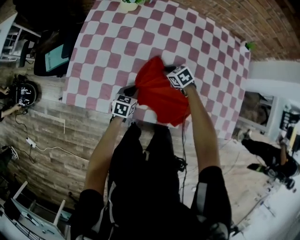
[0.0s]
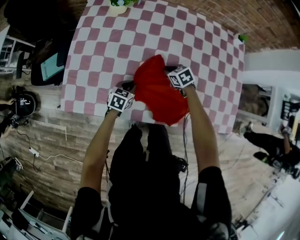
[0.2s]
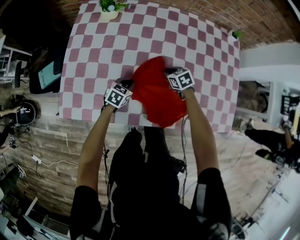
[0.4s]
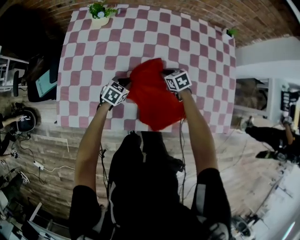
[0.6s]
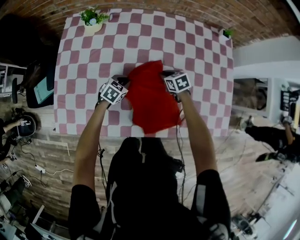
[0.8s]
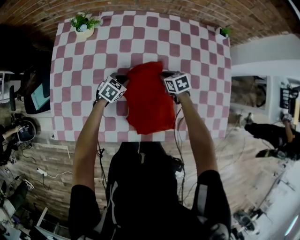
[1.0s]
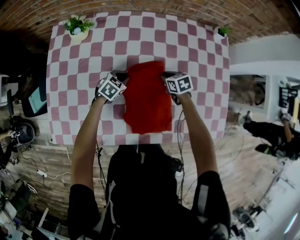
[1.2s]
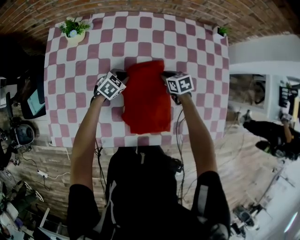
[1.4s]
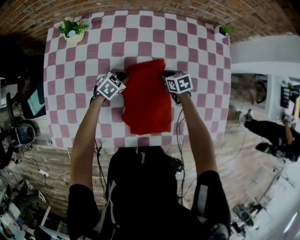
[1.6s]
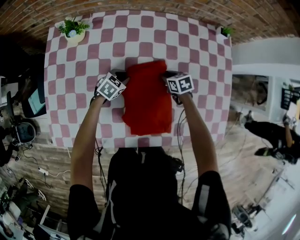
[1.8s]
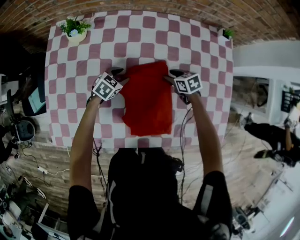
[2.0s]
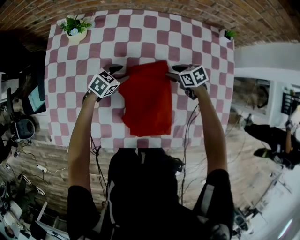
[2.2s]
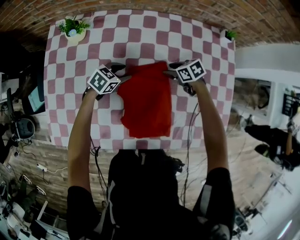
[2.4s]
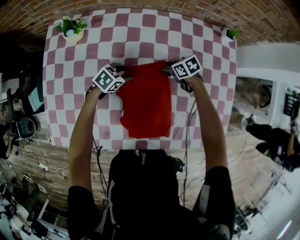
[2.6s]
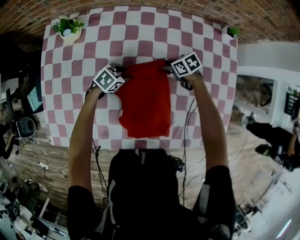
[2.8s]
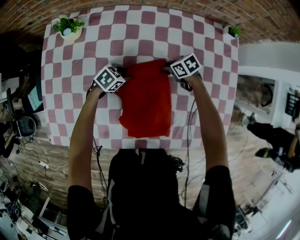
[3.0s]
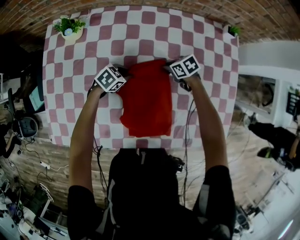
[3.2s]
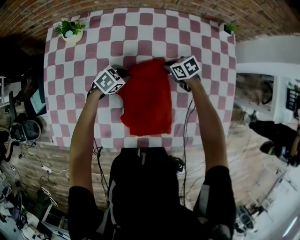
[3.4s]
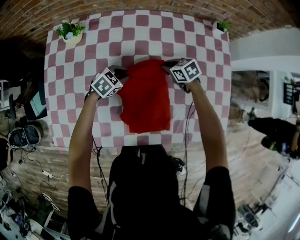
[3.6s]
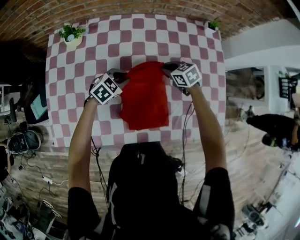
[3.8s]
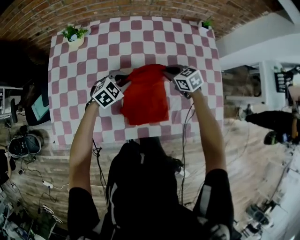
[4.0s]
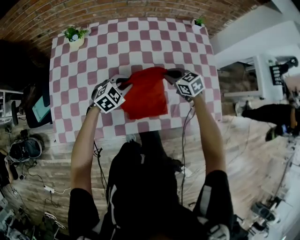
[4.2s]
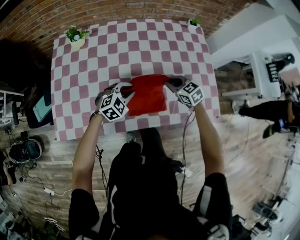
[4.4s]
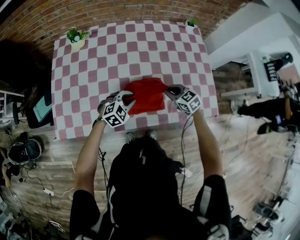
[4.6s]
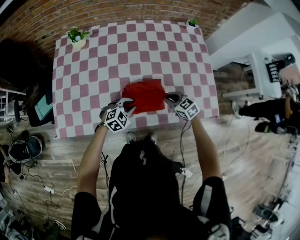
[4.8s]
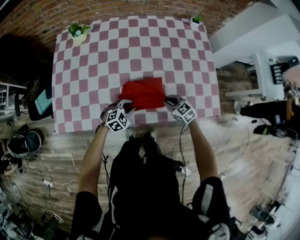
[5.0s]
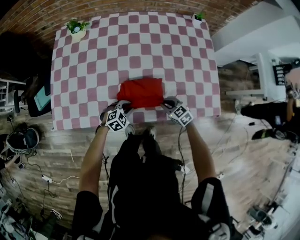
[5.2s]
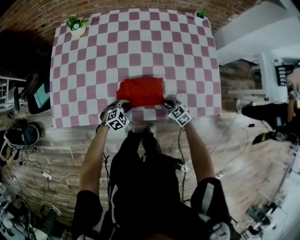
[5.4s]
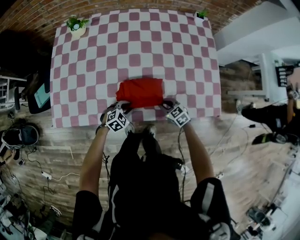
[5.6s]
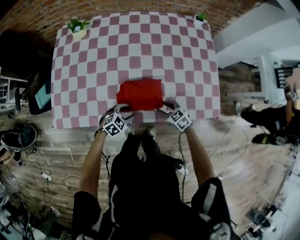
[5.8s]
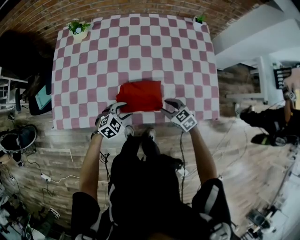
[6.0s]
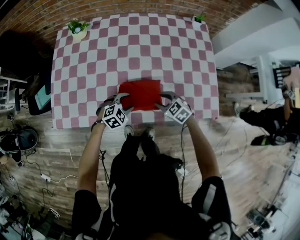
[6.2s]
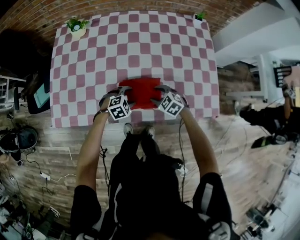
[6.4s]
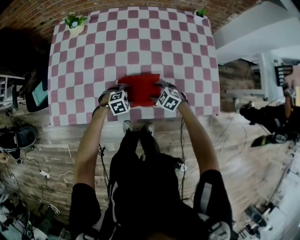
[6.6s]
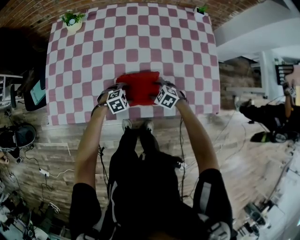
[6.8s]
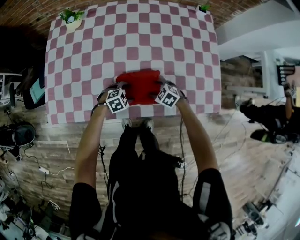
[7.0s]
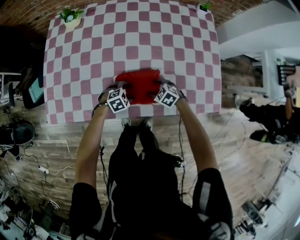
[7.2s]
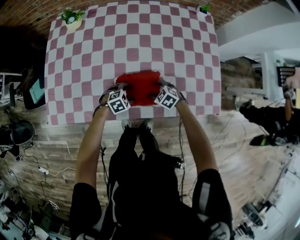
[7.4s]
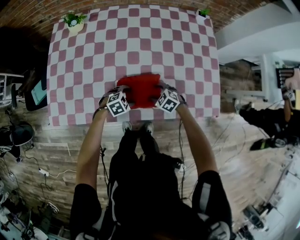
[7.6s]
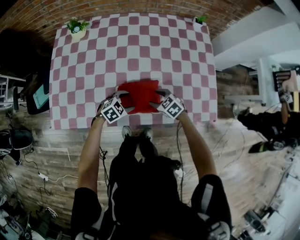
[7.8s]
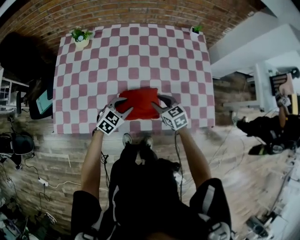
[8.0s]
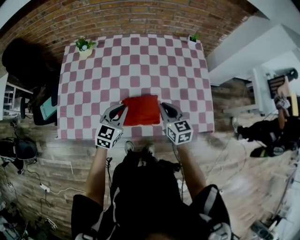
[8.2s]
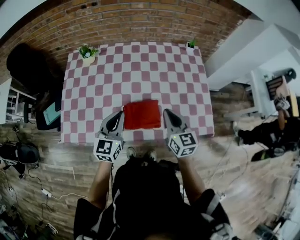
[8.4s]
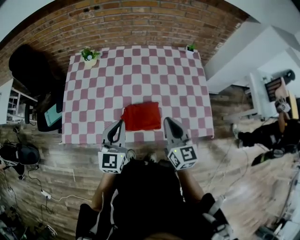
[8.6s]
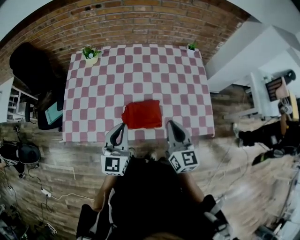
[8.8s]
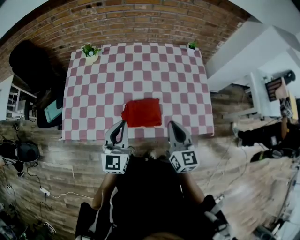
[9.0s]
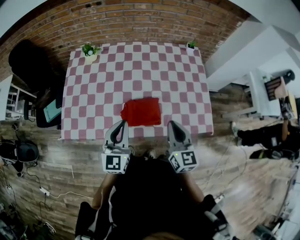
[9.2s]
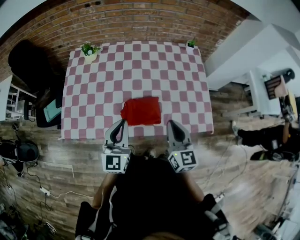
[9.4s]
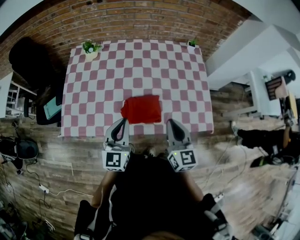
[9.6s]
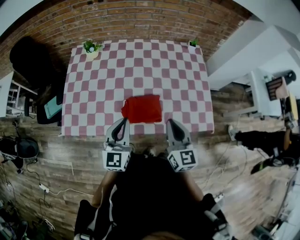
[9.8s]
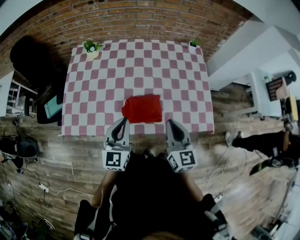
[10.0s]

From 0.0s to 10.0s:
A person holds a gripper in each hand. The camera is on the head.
From 0.0s to 1.4s: The left gripper goes roughly 25 cm forward and to the right, and swivels roughly 40 degrees. Meanwhile the right gripper goes roughly 20 cm to the right and forward, and swivels some 30 degrees.
From 1.4s to 2.8s: The right gripper moves some 5 cm, turns by about 20 degrees, and opens. Meanwhile the left gripper opens.
From 2.8s to 4.2s: The right gripper changes place by roughly 25 cm, turns by roughly 30 degrees, and closes its fingers; the left gripper is displaced upward by about 15 cm, swivels approximately 30 degrees, and closes.
From 4.2s to 5.8s: The two grippers go approximately 25 cm backward and downward. The right gripper opens up. The left gripper opens its fingers.
From 5.8s to 7.2s: The right gripper shifts by approximately 10 cm, changes its angle by approximately 20 degrees, and opens, while the left gripper shifts by about 10 cm.
From 7.2s to 8.6s: Both grippers travel together upward, some 40 cm. The right gripper points its fingers about 50 degrees further upward, and closes its fingers; the left gripper tips its fingers upward by roughly 50 degrees, and closes its fingers.
From 8.6s to 10.0s: The grippers make only small movements.

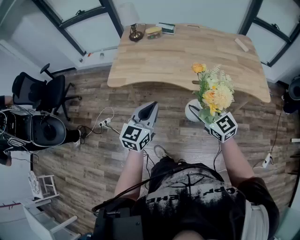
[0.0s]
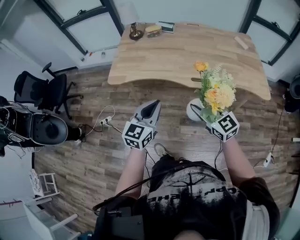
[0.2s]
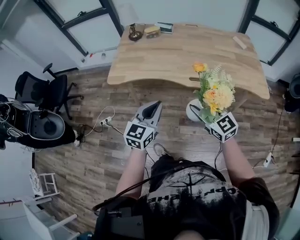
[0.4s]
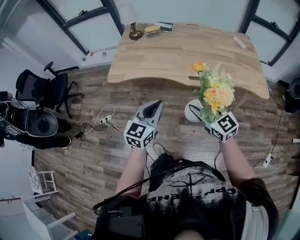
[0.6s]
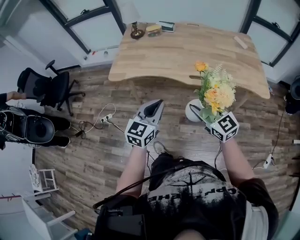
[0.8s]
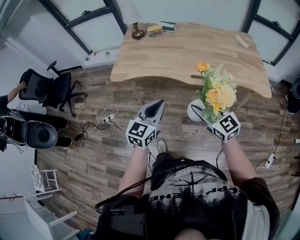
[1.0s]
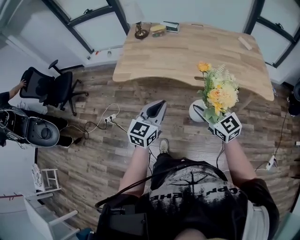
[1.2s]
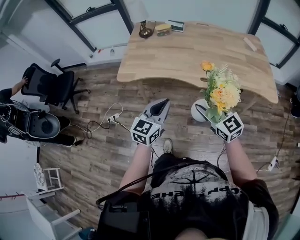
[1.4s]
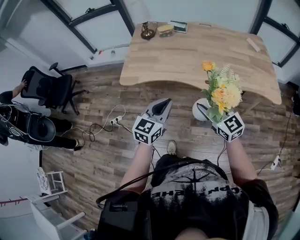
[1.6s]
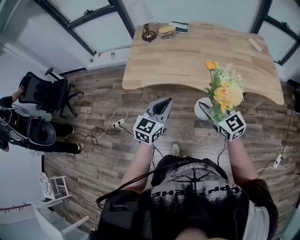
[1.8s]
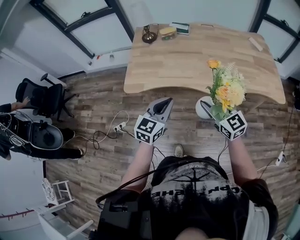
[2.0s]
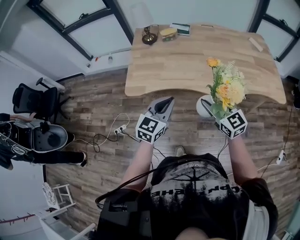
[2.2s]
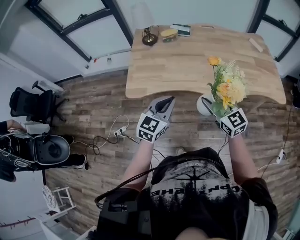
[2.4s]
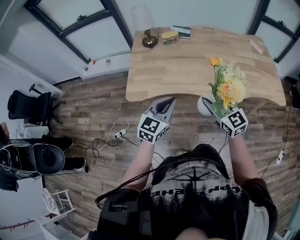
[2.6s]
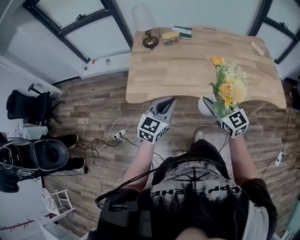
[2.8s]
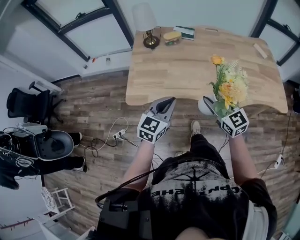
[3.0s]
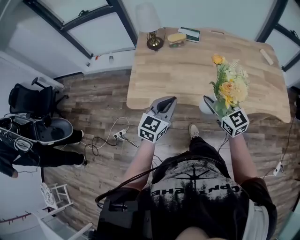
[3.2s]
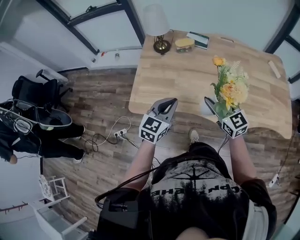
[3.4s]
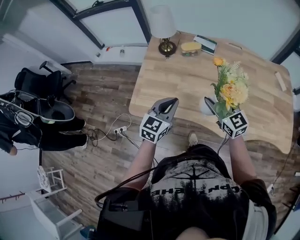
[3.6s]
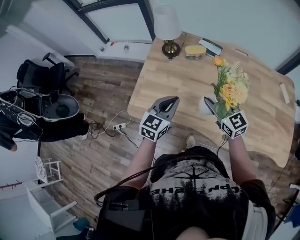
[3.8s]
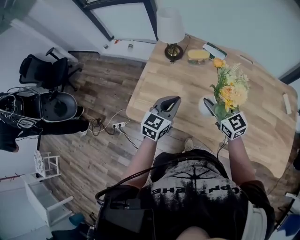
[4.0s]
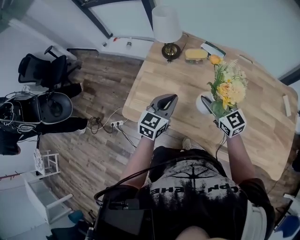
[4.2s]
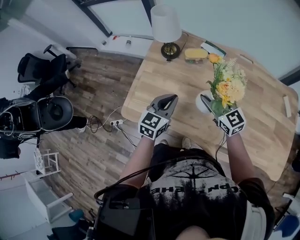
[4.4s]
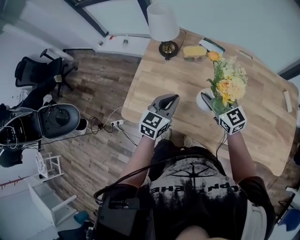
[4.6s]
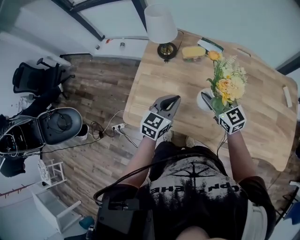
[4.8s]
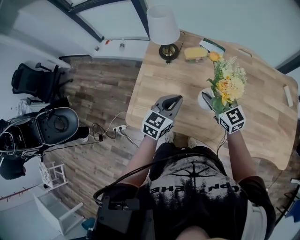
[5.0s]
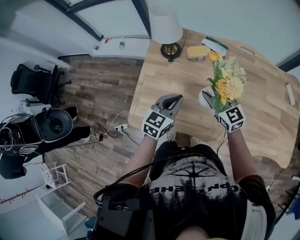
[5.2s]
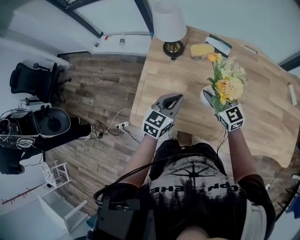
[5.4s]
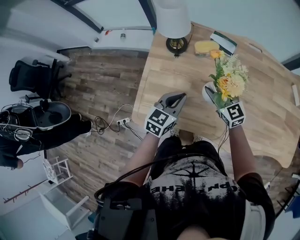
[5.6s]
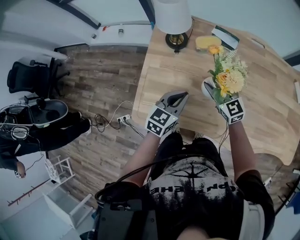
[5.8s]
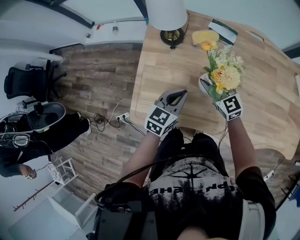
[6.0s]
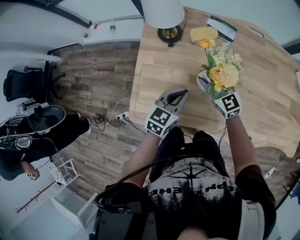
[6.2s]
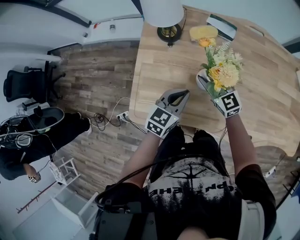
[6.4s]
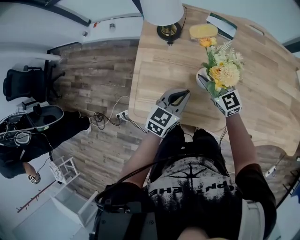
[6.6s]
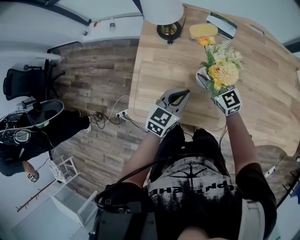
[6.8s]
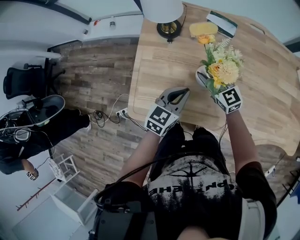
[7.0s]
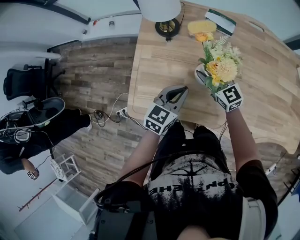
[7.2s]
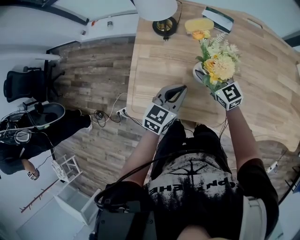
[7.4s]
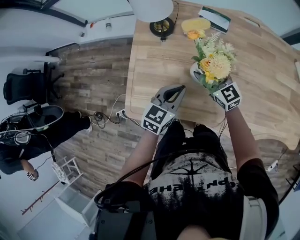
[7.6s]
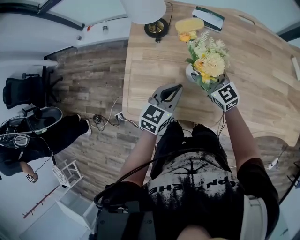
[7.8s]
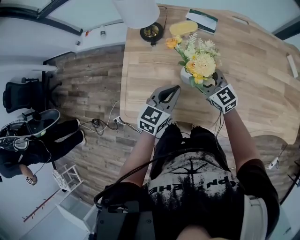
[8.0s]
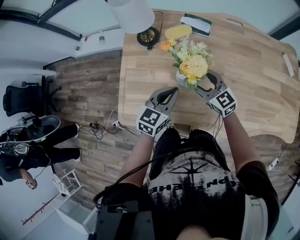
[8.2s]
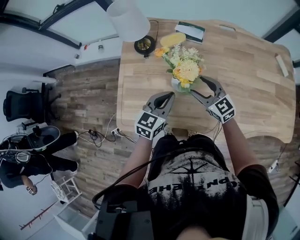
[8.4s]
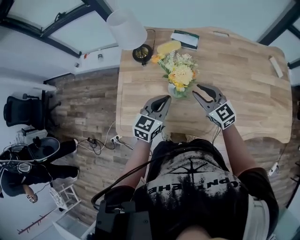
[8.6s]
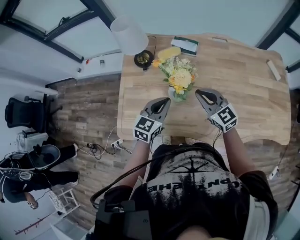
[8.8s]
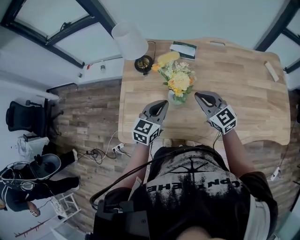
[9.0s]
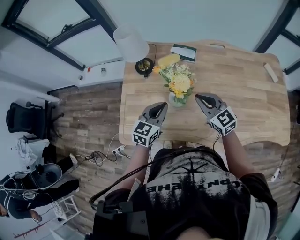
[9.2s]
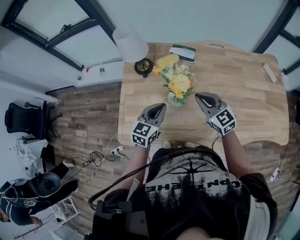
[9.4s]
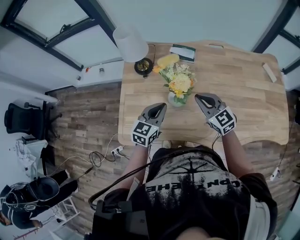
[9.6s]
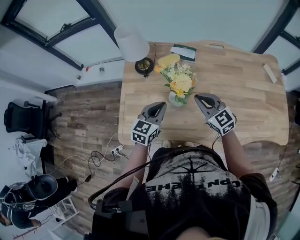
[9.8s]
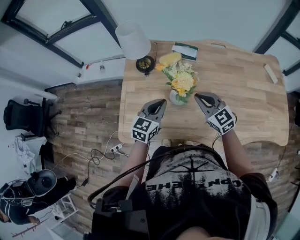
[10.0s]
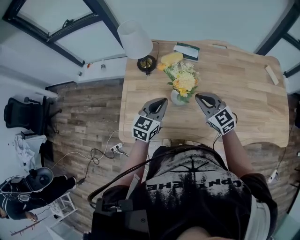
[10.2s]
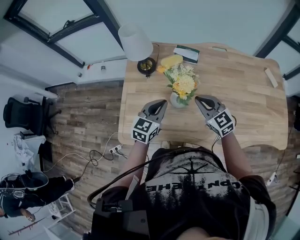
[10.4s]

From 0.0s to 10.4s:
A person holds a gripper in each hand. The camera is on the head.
From 1.4s to 3.0s: The two grippers go about 20 cm forward and to the left.
From 3.0s to 4.4s: Both grippers travel together forward, about 25 cm. The left gripper changes its angle by some 20 degrees, while the right gripper rotates some 20 degrees.
From 4.4s to 6.0s: The left gripper travels downward by approximately 10 cm; the right gripper shifts roughly 15 cm downward, forward and to the left.
From 6.0s to 7.4s: The grippers move only a little.
From 7.4s to 9.0s: The right gripper goes approximately 15 cm to the right, upward and backward, and closes up, while the left gripper travels upward by about 5 cm.
From 9.0s to 10.4s: There are only small adjustments of the grippers.

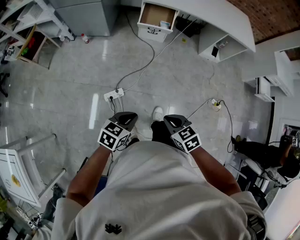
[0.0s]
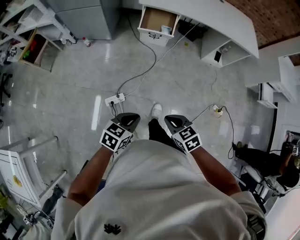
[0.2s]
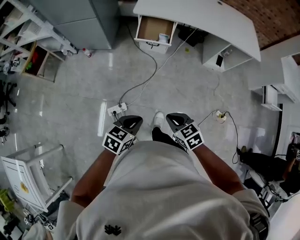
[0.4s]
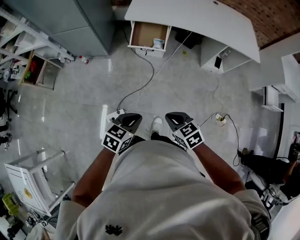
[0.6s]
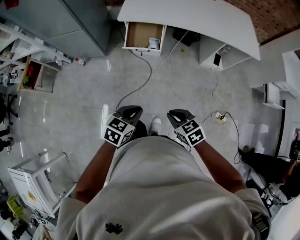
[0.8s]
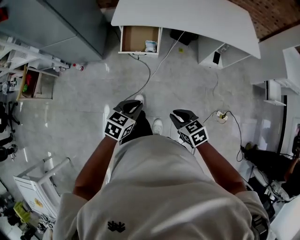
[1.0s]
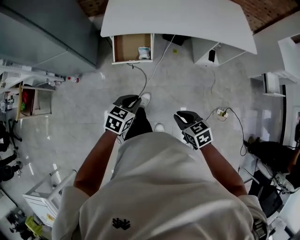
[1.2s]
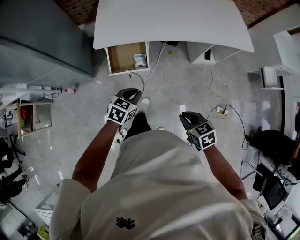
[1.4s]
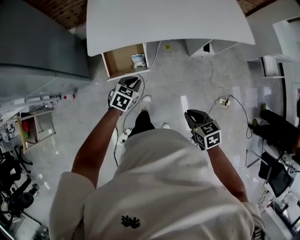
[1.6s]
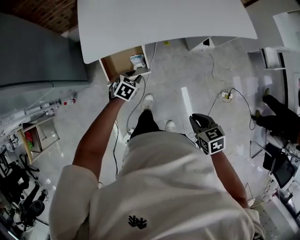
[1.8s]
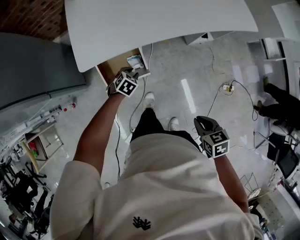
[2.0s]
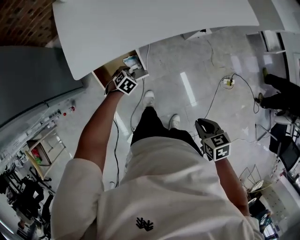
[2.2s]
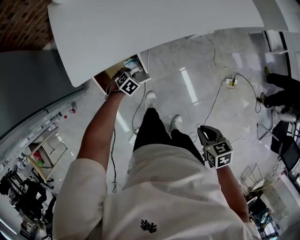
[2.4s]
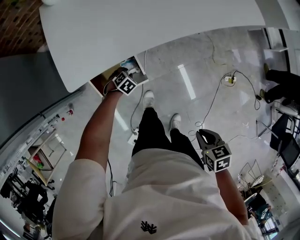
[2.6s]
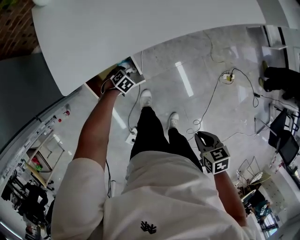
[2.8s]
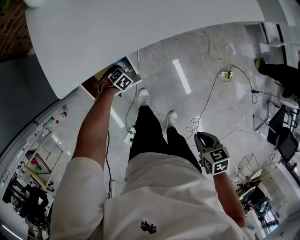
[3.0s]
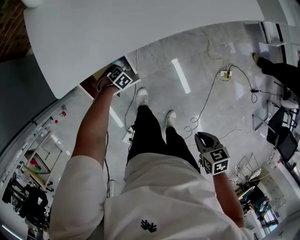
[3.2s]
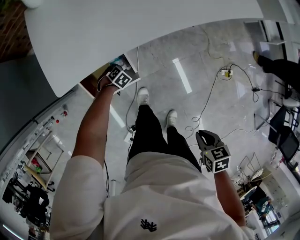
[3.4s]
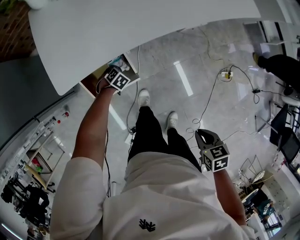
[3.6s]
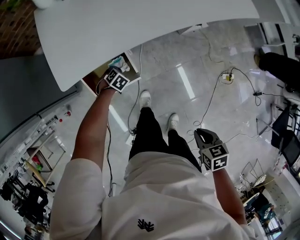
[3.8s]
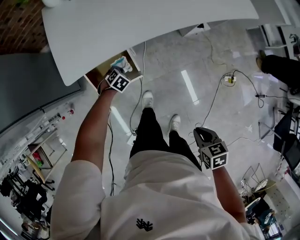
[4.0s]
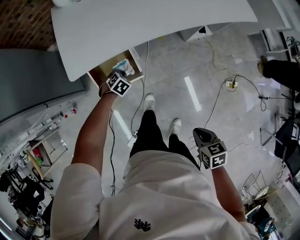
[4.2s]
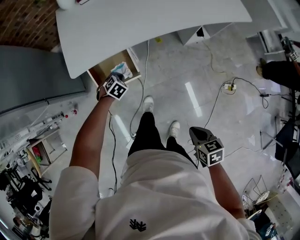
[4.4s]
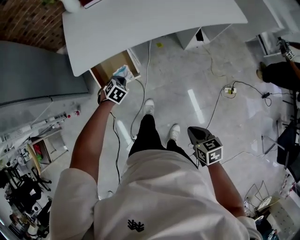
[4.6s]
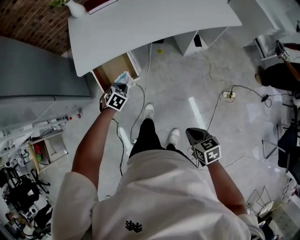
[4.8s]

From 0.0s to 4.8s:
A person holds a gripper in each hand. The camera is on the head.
From 0.0s to 1.6s: Both grippers are carried forward, some 70 cm. The right gripper swivels about 30 degrees. Meanwhile the left gripper turns by about 30 degrees.
From 1.6s to 3.2s: The right gripper shifts roughly 10 cm downward, and turns by some 30 degrees, while the left gripper travels downward by about 35 cm, tips its fingers downward by roughly 30 degrees, and opens and closes again.
From 3.2s to 4.8s: The left gripper shifts some 30 cm upward, and turns by about 20 degrees. The right gripper moves roughly 15 cm, and swivels approximately 20 degrees.
